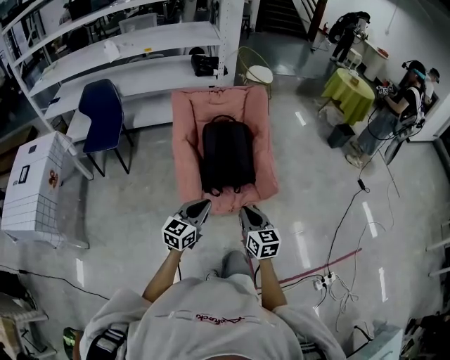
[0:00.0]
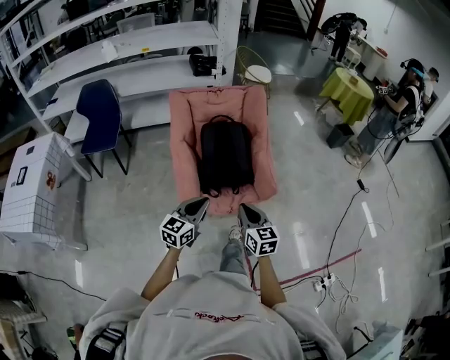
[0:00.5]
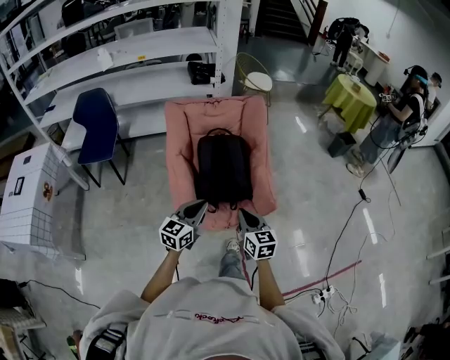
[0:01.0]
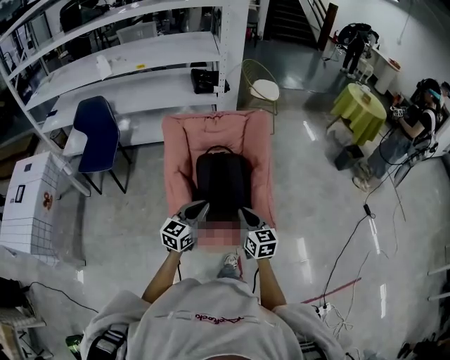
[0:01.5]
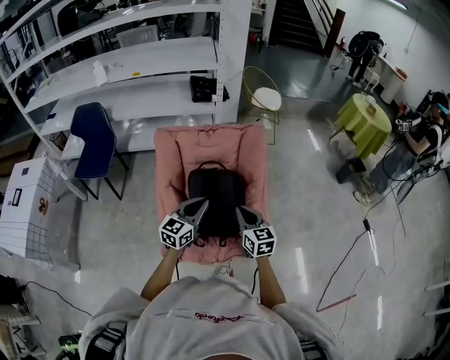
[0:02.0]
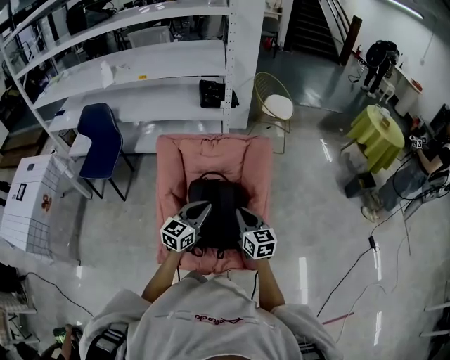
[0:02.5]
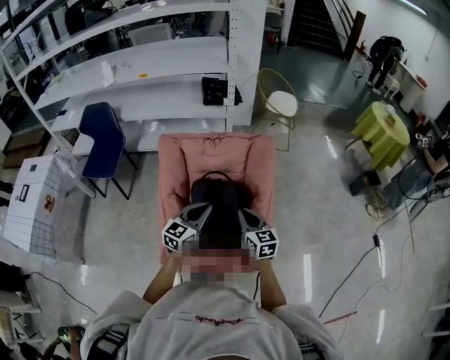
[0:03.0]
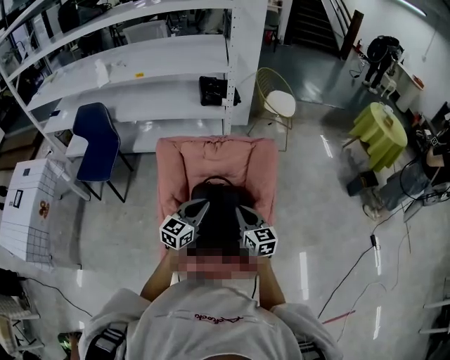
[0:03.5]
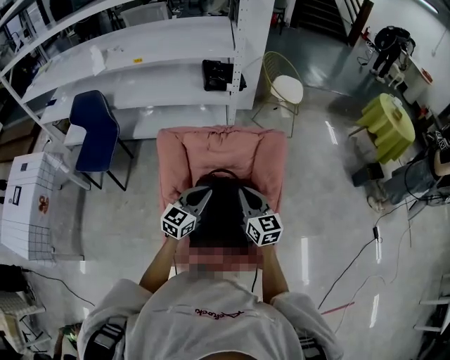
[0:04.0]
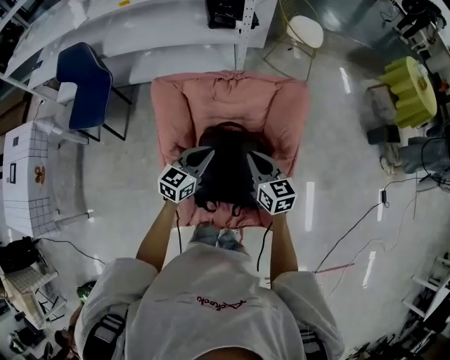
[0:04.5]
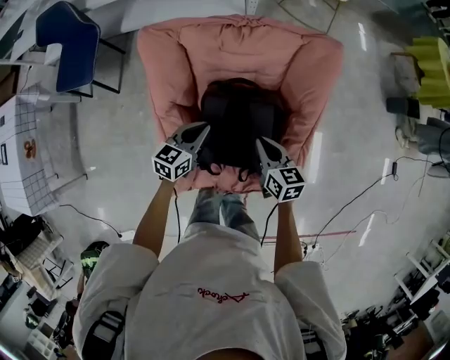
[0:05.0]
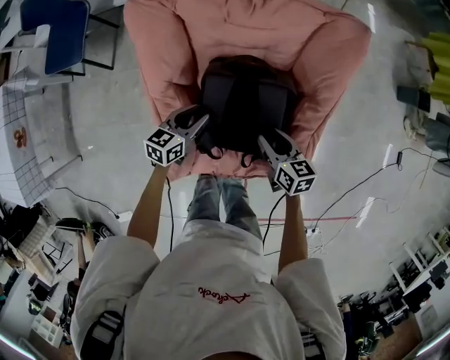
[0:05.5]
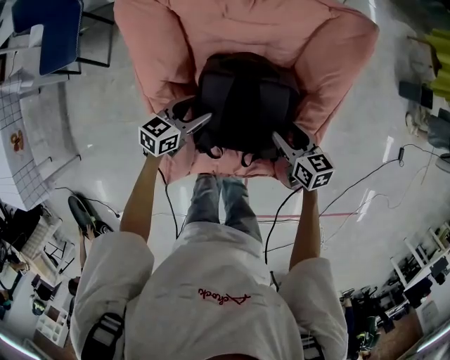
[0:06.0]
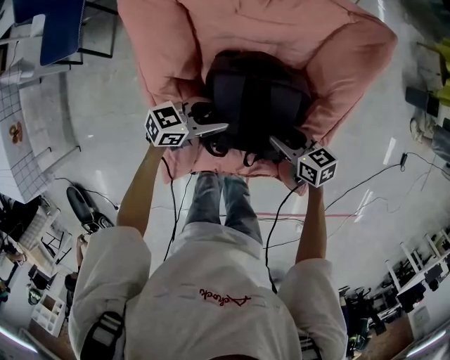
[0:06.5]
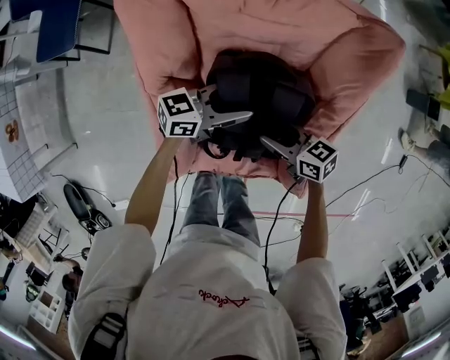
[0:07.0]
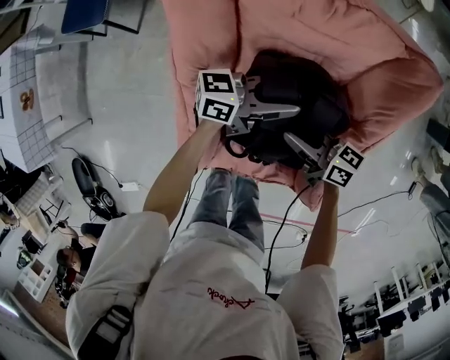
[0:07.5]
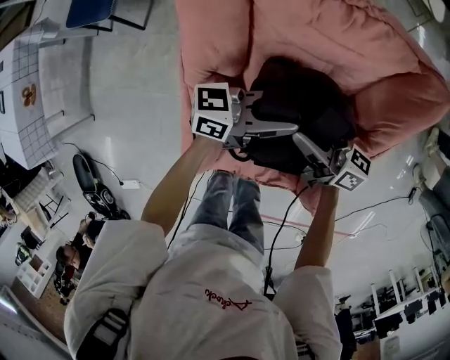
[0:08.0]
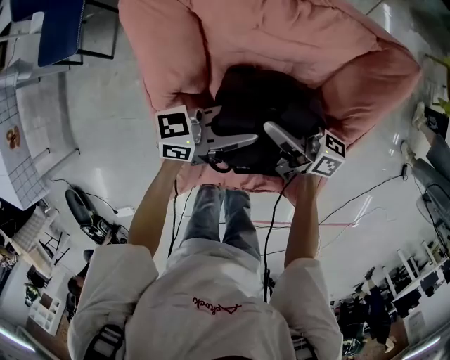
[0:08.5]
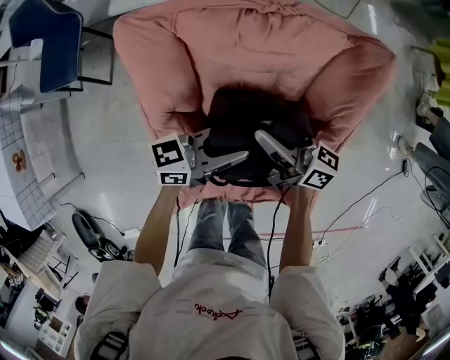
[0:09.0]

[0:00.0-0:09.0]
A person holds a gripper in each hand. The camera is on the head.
0.0 to 2.0 s: The grippers both shift forward by about 35 cm.
2.0 to 4.5 s: The right gripper goes about 25 cm forward; the left gripper goes roughly 25 cm forward and downward.
4.5 to 7.0 s: Both grippers travel together downward, approximately 20 cm. The left gripper rotates some 40 degrees, and opens up. The right gripper turns by about 40 degrees, and opens.
7.0 to 9.0 s: The left gripper travels upward by some 5 cm, and closes up. Meanwhile the right gripper goes approximately 10 cm upward, tips its fingers upward by roughly 40 degrees, and closes up.

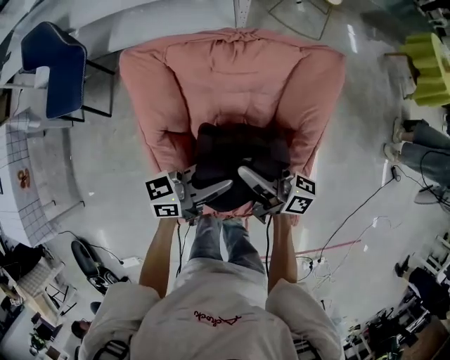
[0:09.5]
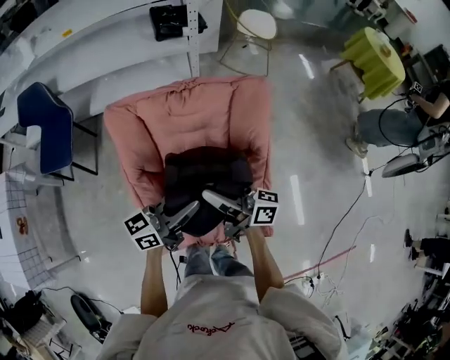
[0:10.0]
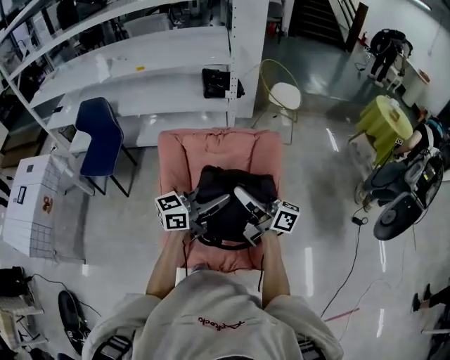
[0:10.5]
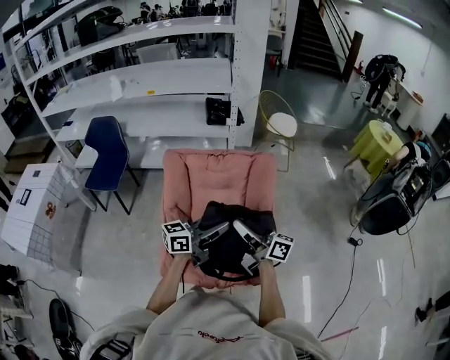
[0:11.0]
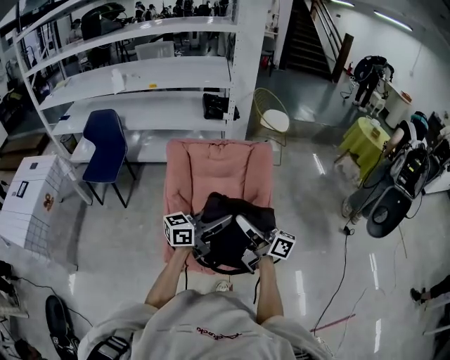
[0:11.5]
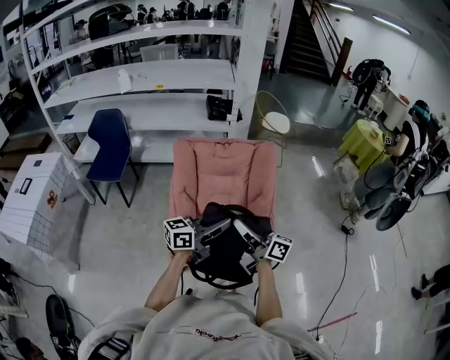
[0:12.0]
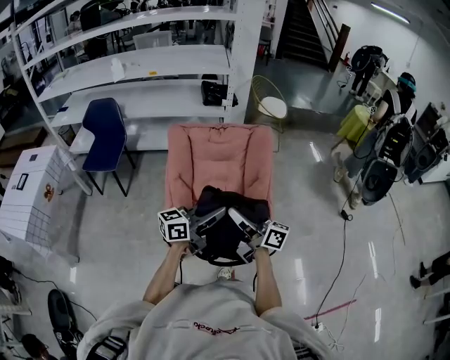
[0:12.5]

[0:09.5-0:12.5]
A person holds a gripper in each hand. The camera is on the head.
9.5 to 11.0 s: The right gripper moves upward, backward and to the right, about 30 cm; the left gripper goes some 30 cm upward and backward.
11.0 to 12.5 s: Both grippers travel together backward and to the left, approximately 15 cm.

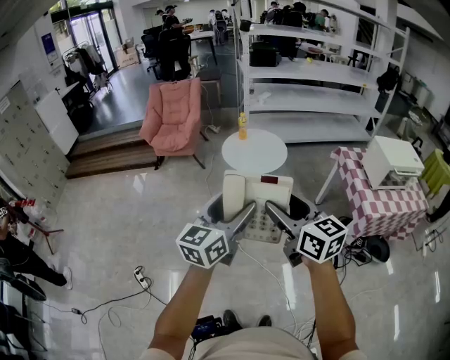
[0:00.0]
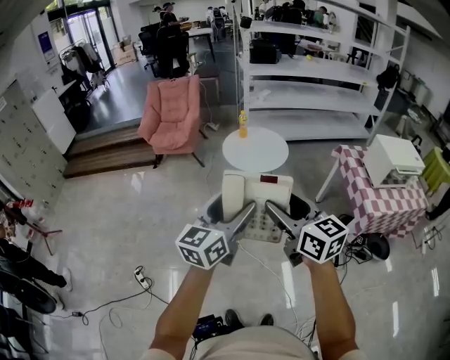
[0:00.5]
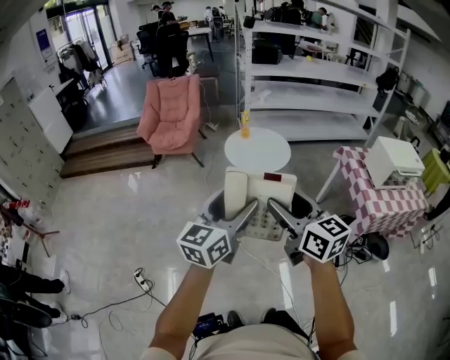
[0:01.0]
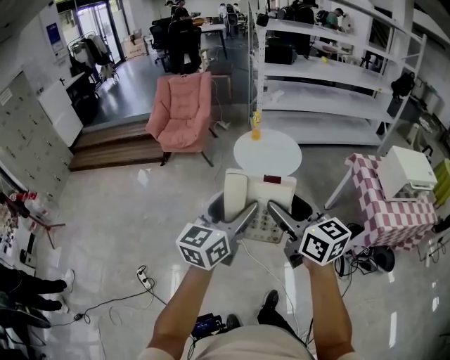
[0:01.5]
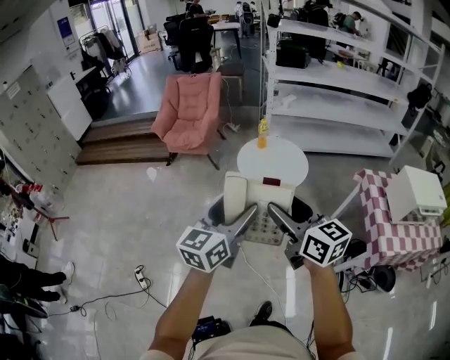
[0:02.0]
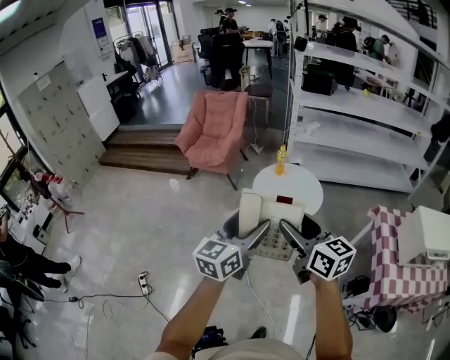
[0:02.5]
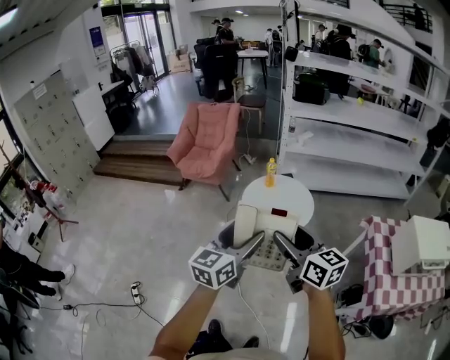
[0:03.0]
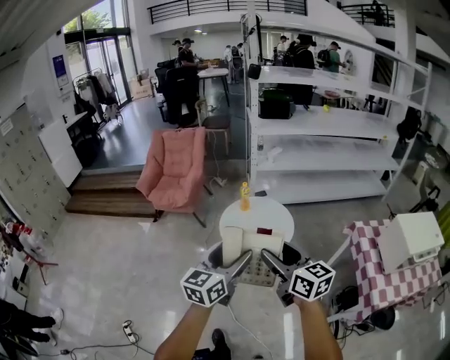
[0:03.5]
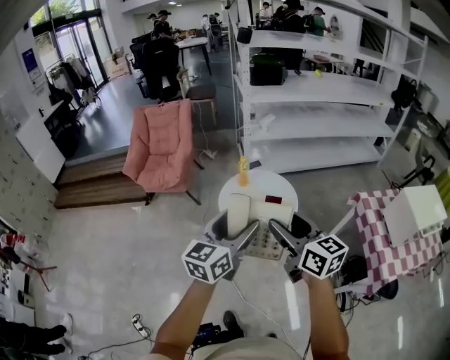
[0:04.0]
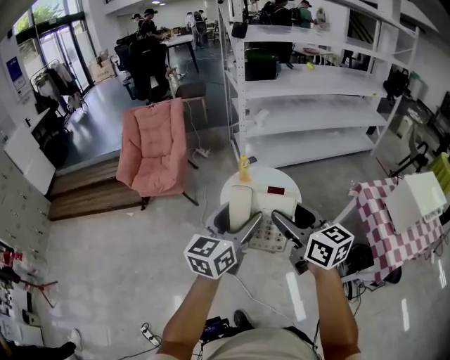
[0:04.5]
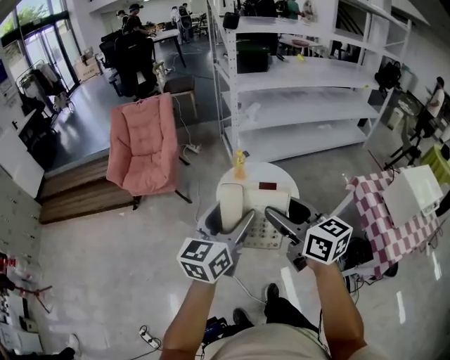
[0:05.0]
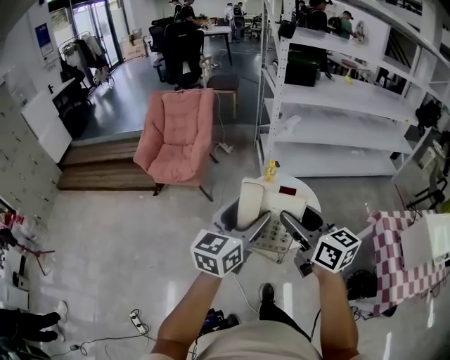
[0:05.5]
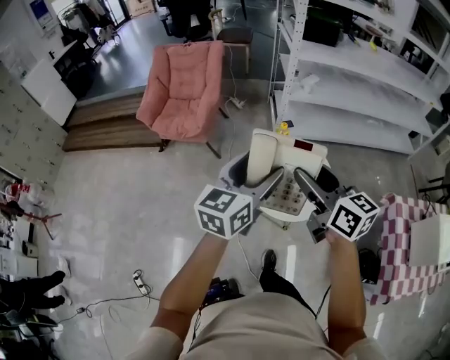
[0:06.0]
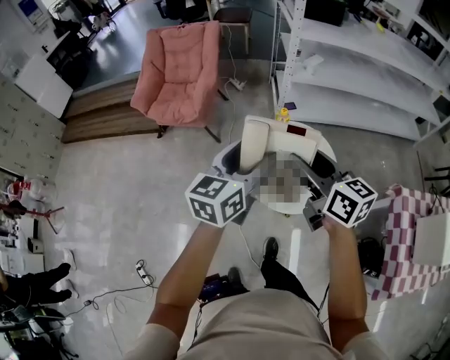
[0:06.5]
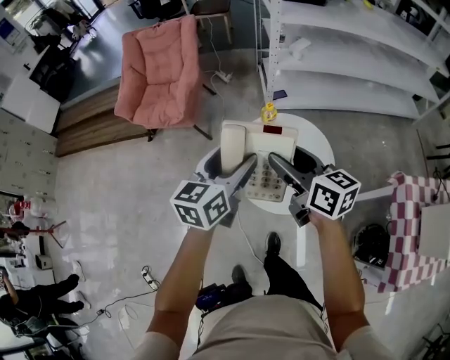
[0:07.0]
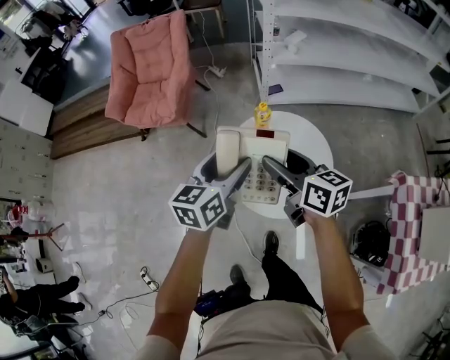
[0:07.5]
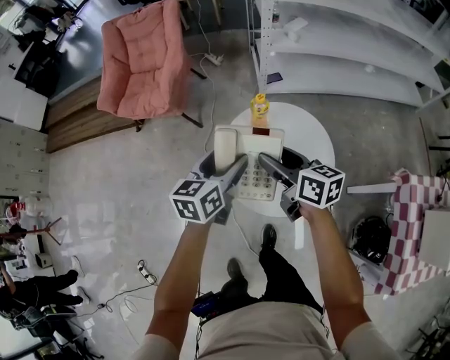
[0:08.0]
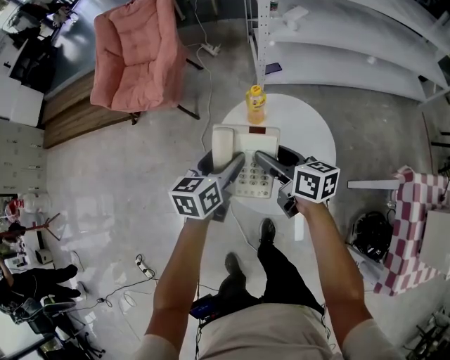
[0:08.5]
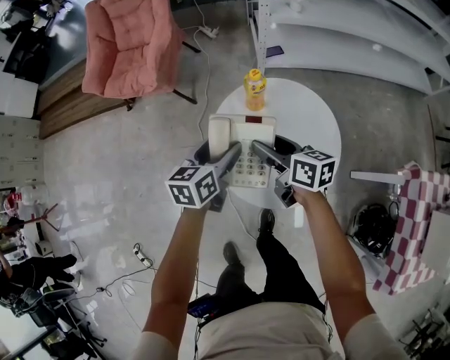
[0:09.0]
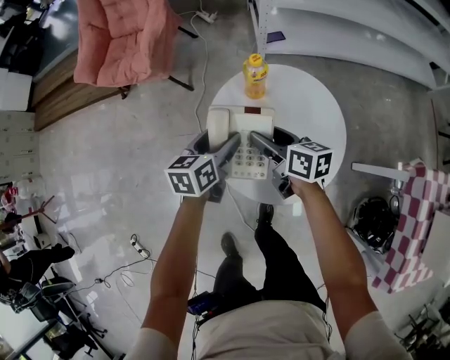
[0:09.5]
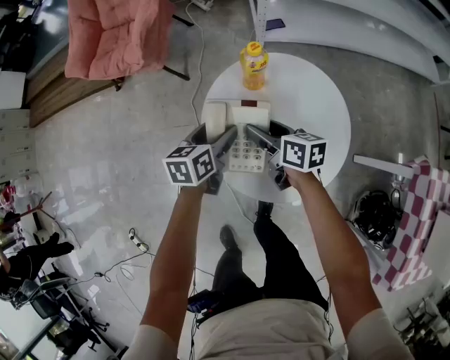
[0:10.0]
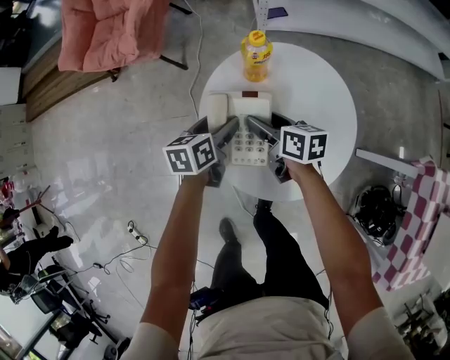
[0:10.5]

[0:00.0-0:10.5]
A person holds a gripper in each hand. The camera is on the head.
0.0 to 2.0 s: The two grippers go some 15 cm forward.
2.0 to 4.0 s: The grippers both shift forward by roughly 25 cm.
4.0 to 6.5 s: Both grippers move forward, some 25 cm.
6.5 to 8.5 s: The two grippers go about 30 cm downward and forward. The right gripper swivels approximately 20 degrees, while the left gripper swivels roughly 20 degrees.
8.5 to 10.5 s: Both grippers move downward, about 20 cm.

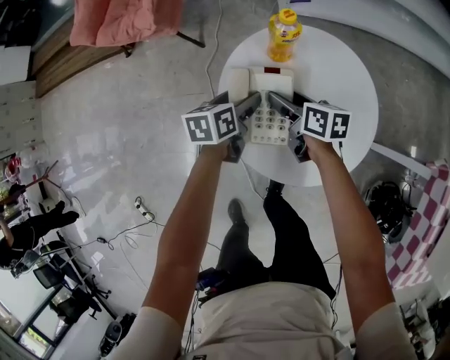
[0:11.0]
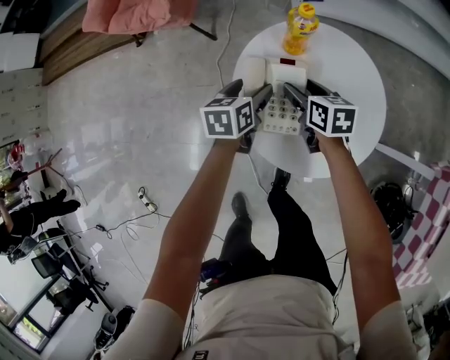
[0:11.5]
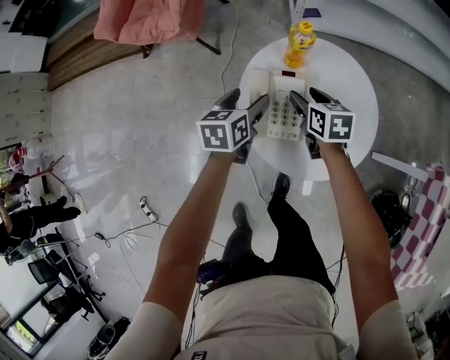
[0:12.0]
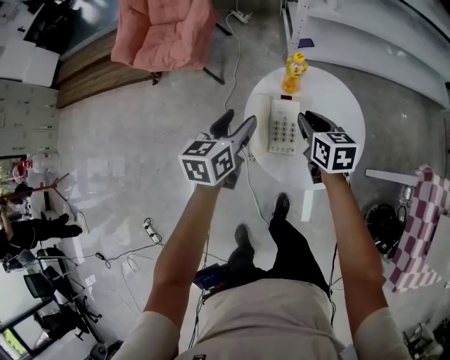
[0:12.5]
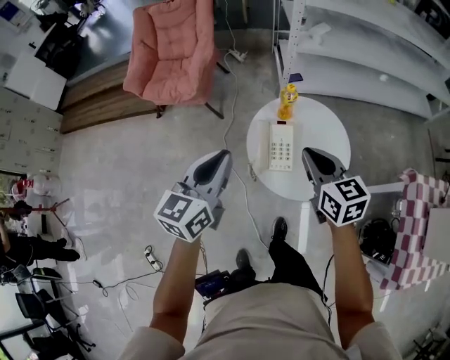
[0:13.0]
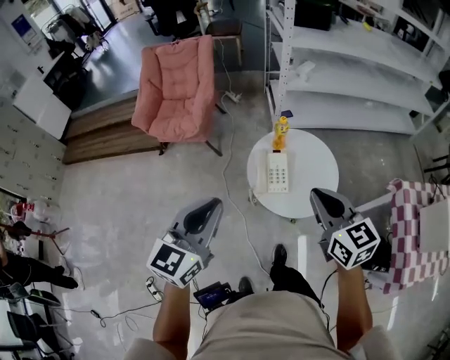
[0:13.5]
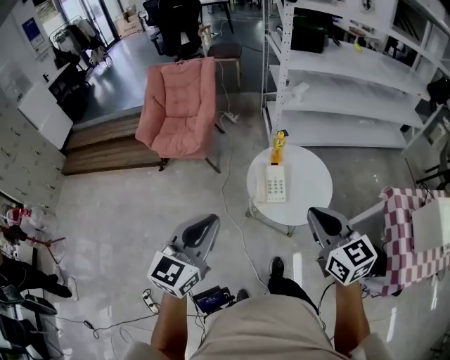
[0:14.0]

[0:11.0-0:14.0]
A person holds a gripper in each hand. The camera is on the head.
11.0 to 12.5 s: Both grippers move upward, approximately 20 cm. The left gripper rotates about 20 degrees. Meanwhile the right gripper swivels approximately 30 degrees, and closes its fingers.
12.5 to 14.0 s: Both grippers travel together upward and backward, approximately 40 cm. The left gripper turns by roughly 30 degrees, and closes its fingers. Meanwhile the right gripper changes its angle by some 30 degrees.

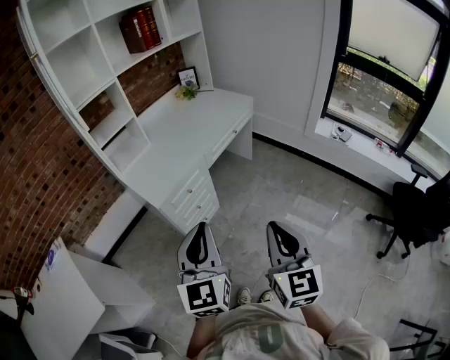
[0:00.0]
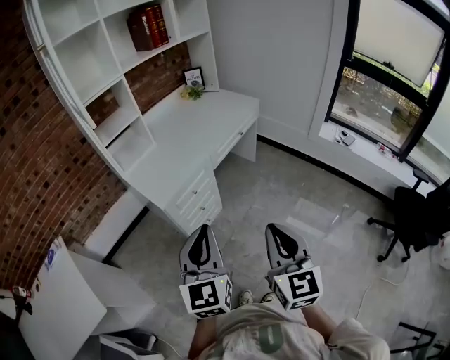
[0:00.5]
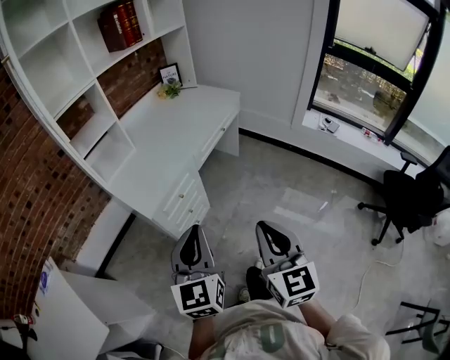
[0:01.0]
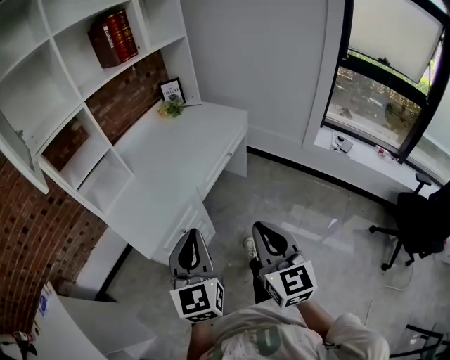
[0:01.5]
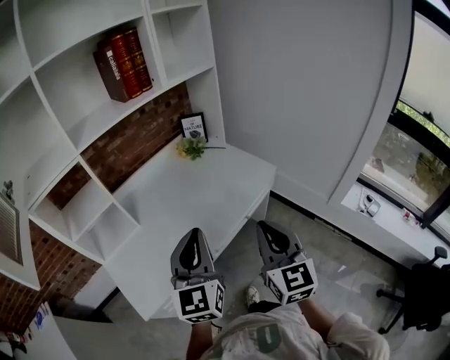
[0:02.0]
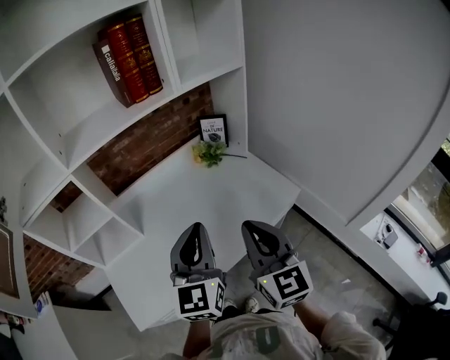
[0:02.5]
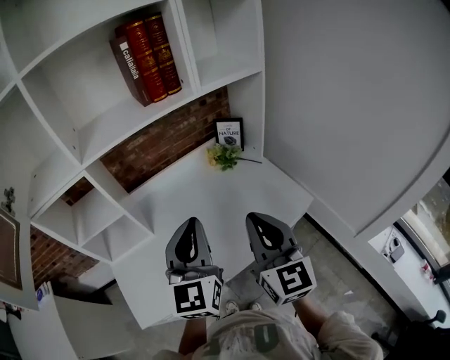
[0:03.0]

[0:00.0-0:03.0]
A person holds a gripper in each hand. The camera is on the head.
0.0 to 1.5 s: Both grippers move forward, approximately 20 cm.
1.5 to 3.0 s: The two grippers travel together, forward, approximately 50 cm. The left gripper changes its angle by about 20 degrees. Meanwhile the right gripper turns by about 30 degrees.
